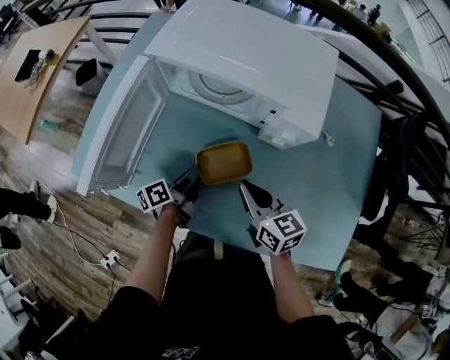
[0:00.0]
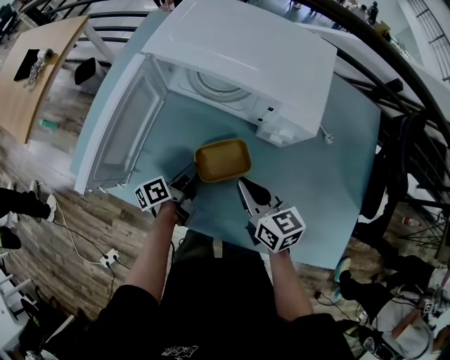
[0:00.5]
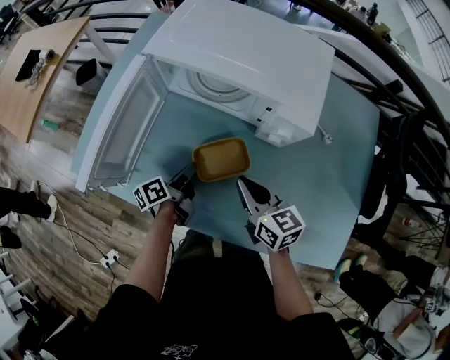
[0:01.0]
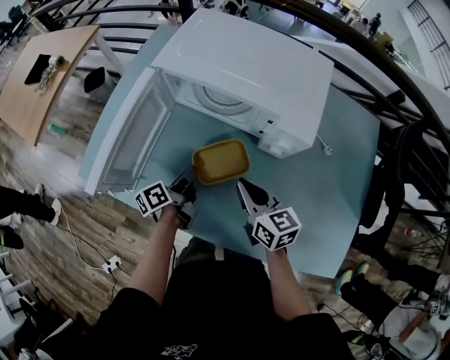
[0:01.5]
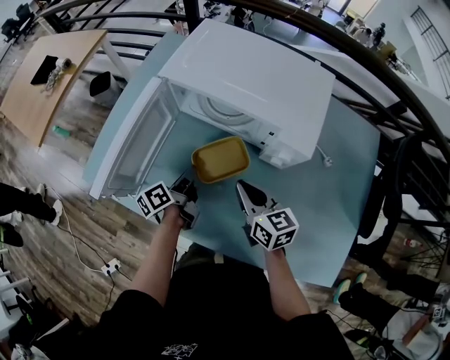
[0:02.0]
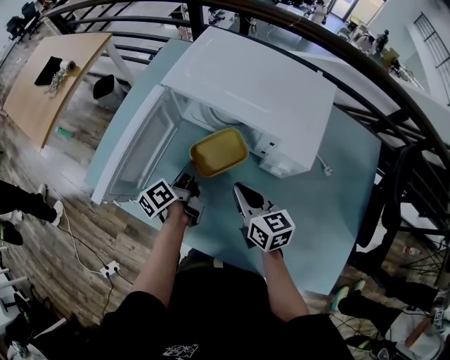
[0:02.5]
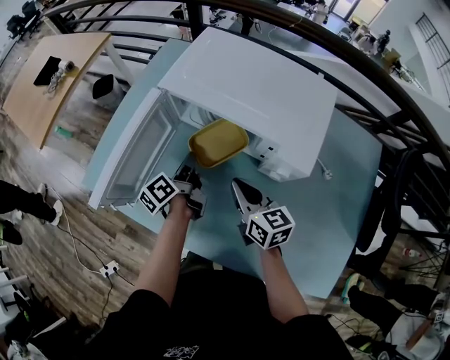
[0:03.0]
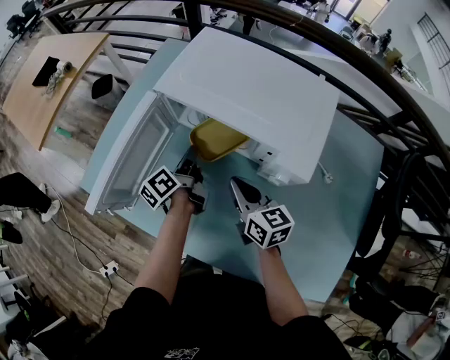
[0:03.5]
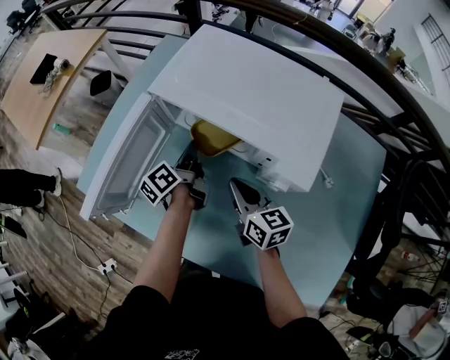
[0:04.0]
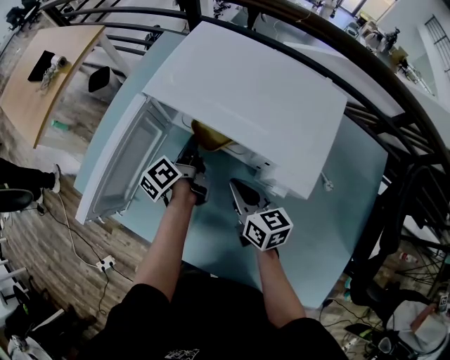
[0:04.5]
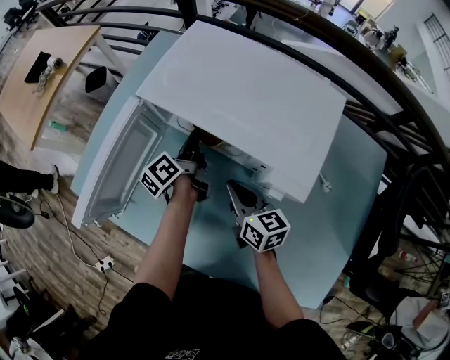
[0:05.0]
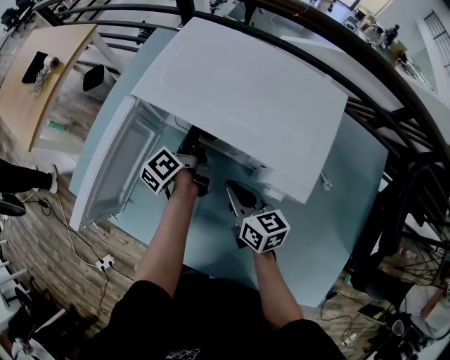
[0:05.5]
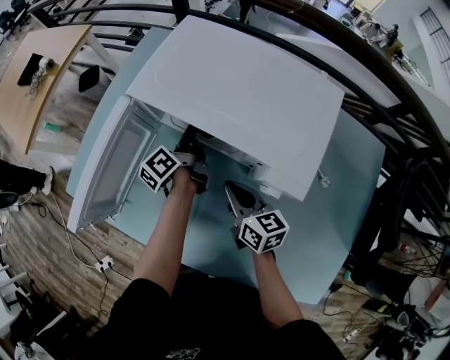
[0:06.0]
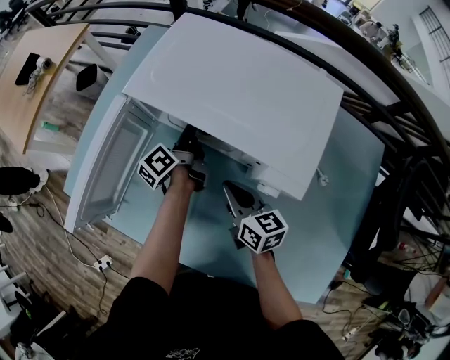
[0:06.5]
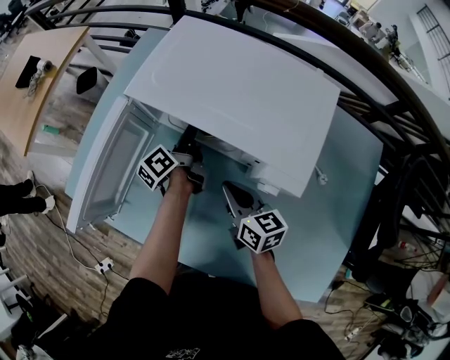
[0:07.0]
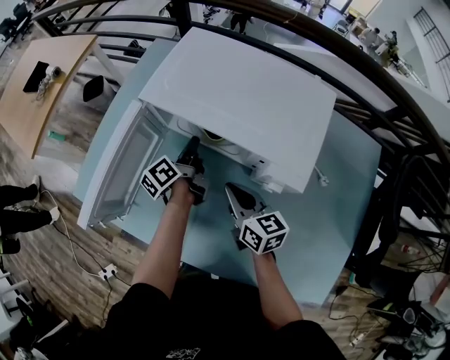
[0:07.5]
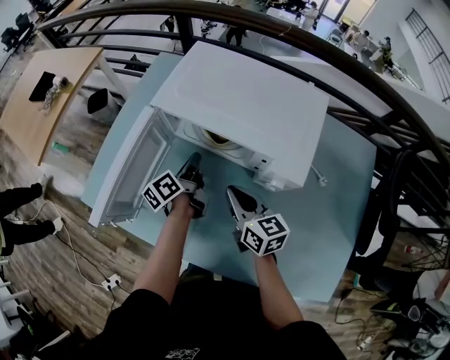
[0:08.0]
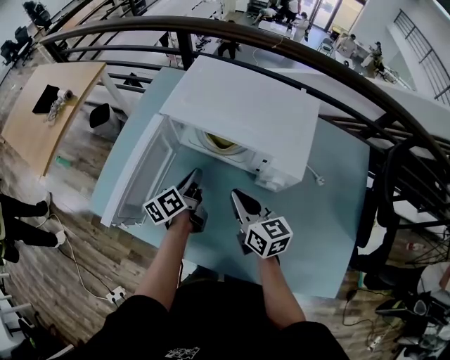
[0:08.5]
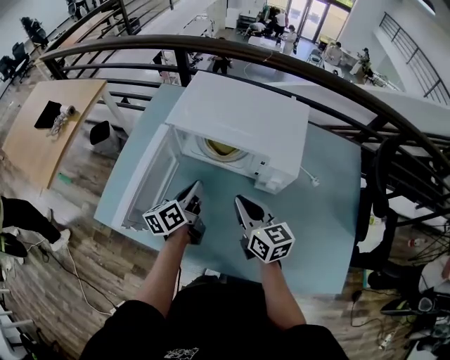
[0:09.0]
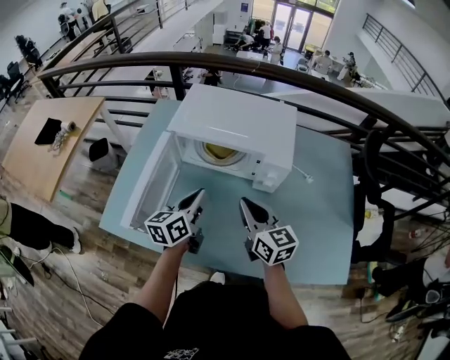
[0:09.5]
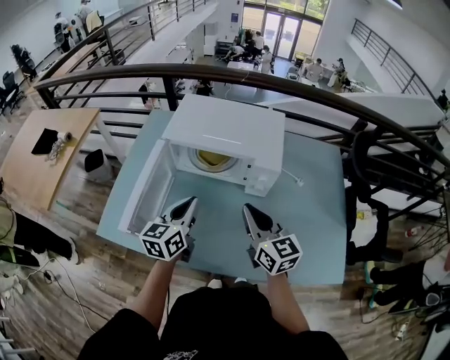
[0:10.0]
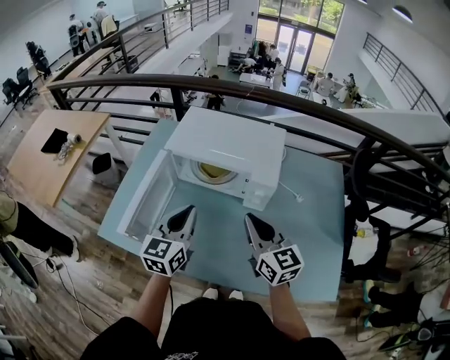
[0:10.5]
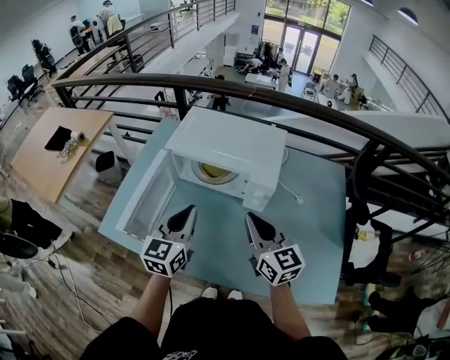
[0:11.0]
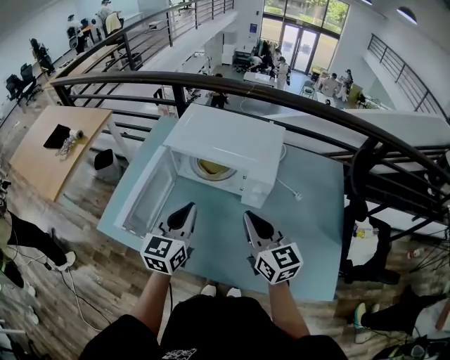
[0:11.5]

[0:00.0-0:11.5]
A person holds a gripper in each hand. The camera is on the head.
0:00.0 to 0:02.0: The left gripper is displaced upward by approximately 5 cm.
0:02.0 to 0:04.0: The left gripper goes about 15 cm forward. Meanwhile the right gripper is displaced forward by some 10 cm.
0:04.0 to 0:06.0: The left gripper heads forward, covering some 5 cm.
0:06.0 to 0:07.5: The grippers stay close to where they were, moving slightly.
0:07.5 to 0:09.5: The right gripper shifts roughly 15 cm upward and backward, and rotates approximately 20 degrees. Meanwhile the left gripper goes some 25 cm backward and upward, and twists some 40 degrees clockwise, seen from behind.
0:09.5 to 0:11.5: The right gripper heads upward and to the right, covering some 10 cm. Meanwhile the left gripper travels upward and backward by about 10 cm, and rotates some 30 degrees.

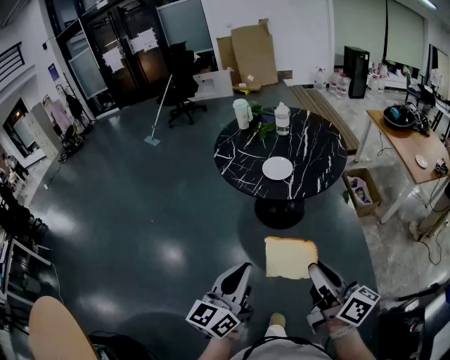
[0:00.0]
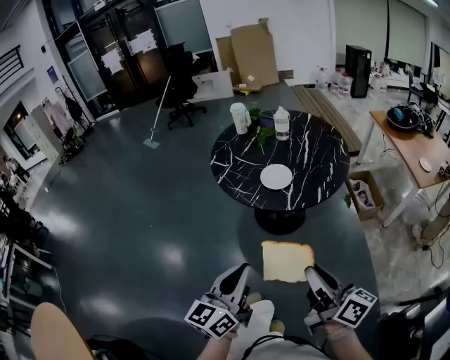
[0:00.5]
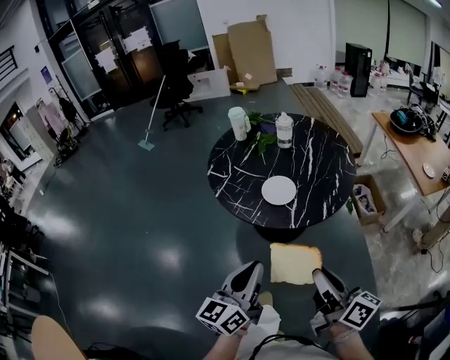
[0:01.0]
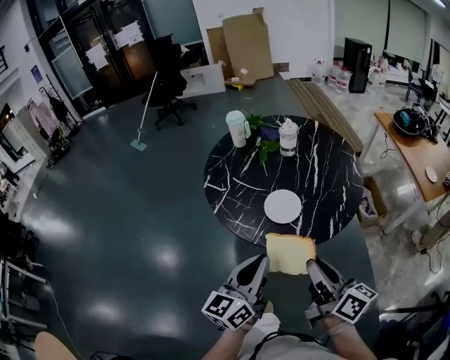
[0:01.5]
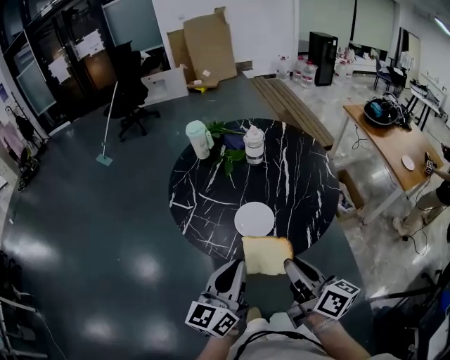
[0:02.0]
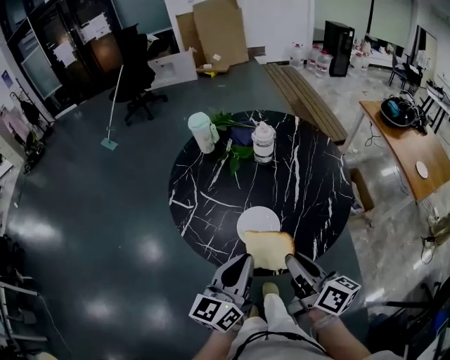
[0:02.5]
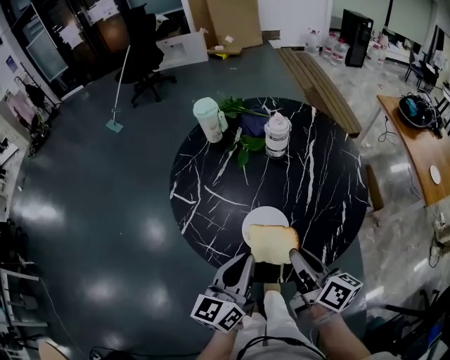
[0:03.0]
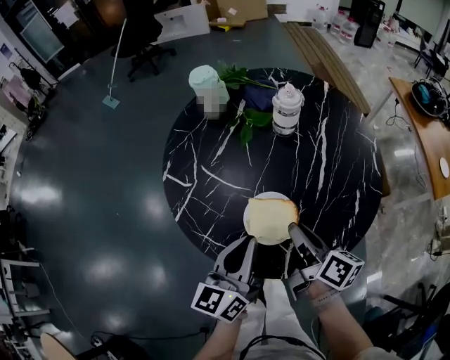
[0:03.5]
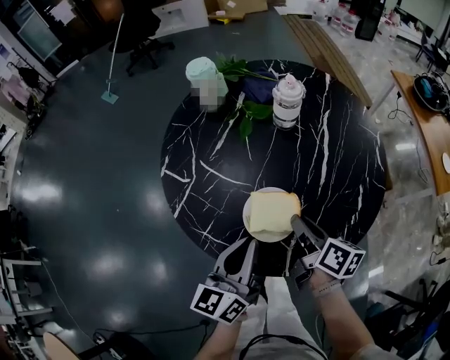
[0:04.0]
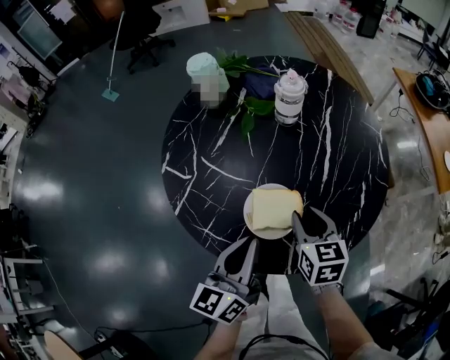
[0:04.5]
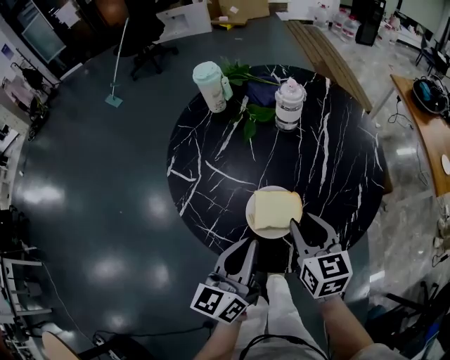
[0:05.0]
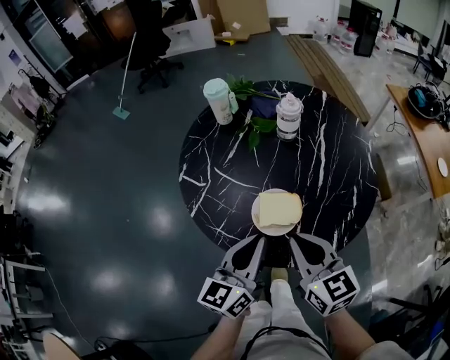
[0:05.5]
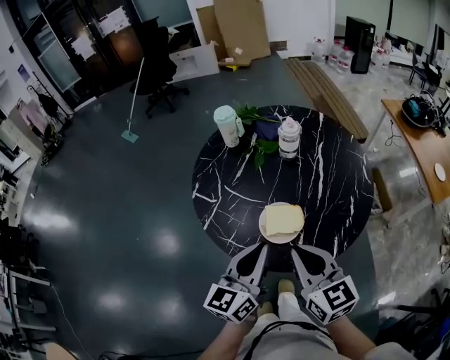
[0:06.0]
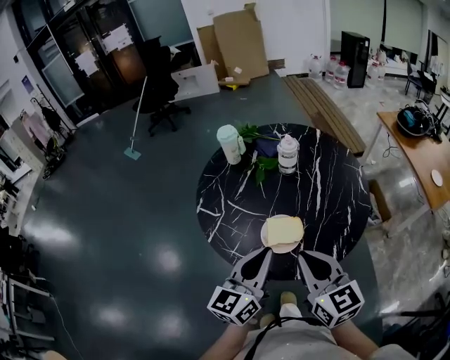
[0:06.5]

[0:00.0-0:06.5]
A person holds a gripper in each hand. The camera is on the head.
0:00.0 to 0:02.0: The grippers both shift forward by roughly 35 cm.
0:02.0 to 0:04.5: The right gripper moves forward and downward, about 25 cm, and angles its fingers downward, by some 30 degrees, while the left gripper goes some 15 cm forward and downward.
0:04.5 to 0:06.5: The left gripper shifts approximately 15 cm upward, while the right gripper moves upward and backward, roughly 25 cm, turns by about 30 degrees, and closes its fingers.

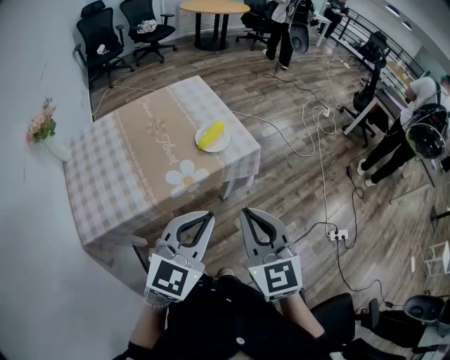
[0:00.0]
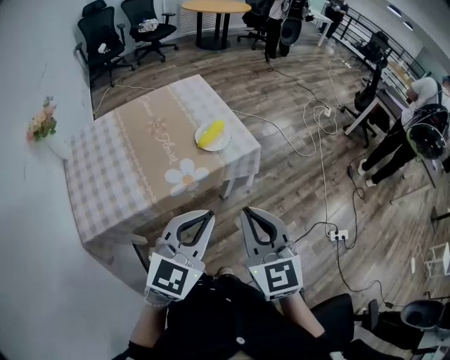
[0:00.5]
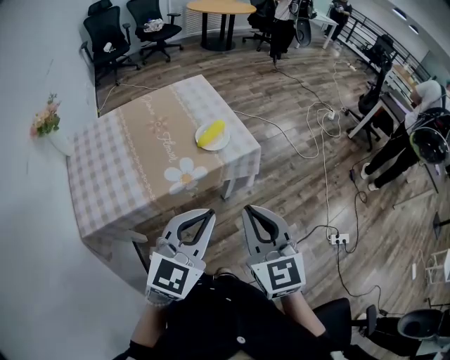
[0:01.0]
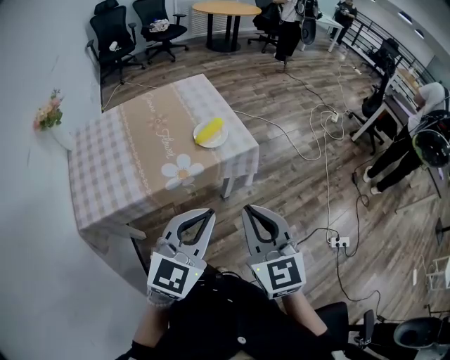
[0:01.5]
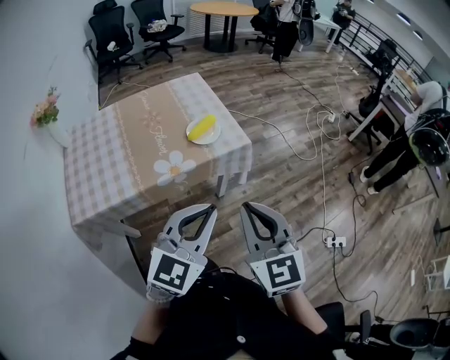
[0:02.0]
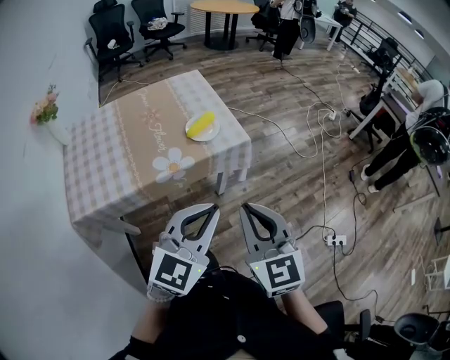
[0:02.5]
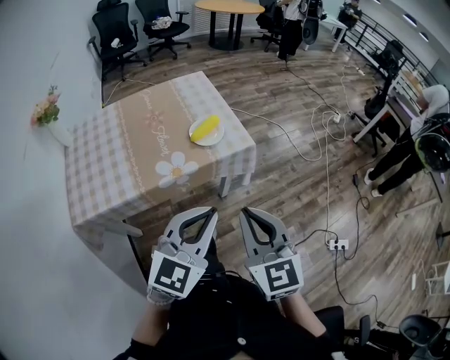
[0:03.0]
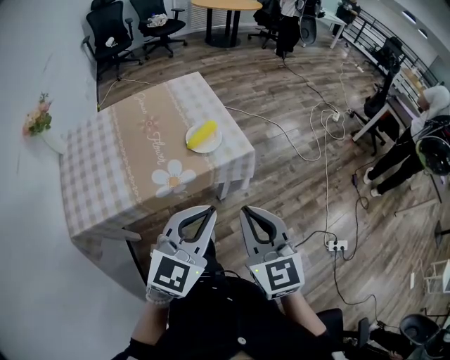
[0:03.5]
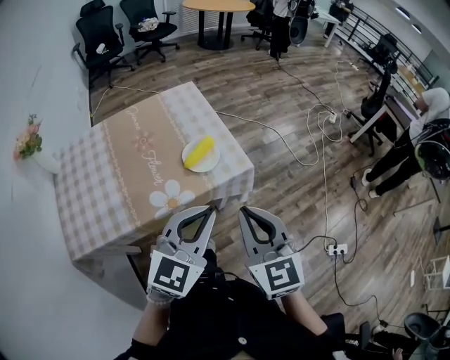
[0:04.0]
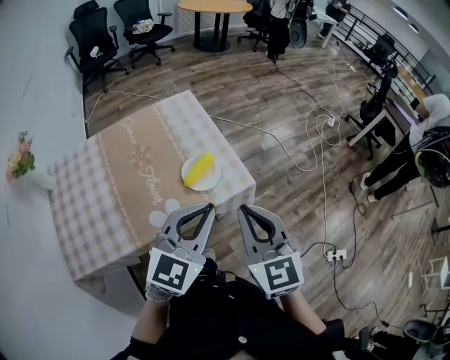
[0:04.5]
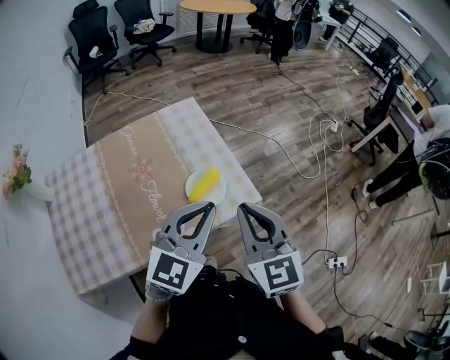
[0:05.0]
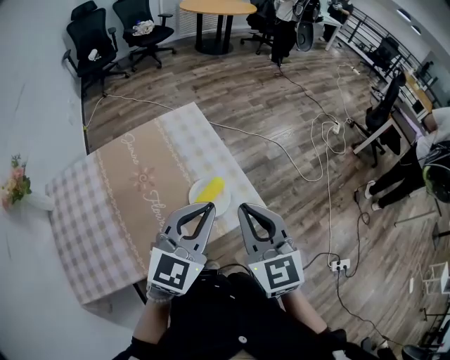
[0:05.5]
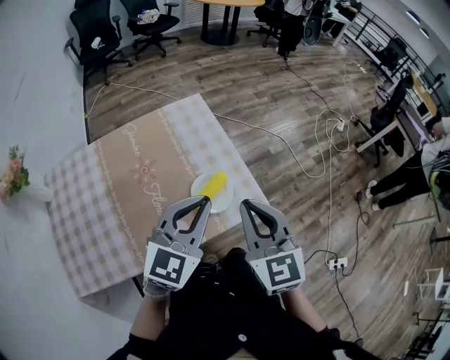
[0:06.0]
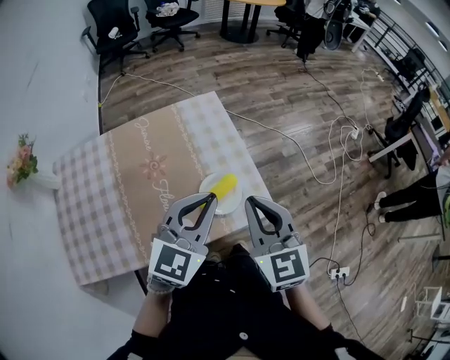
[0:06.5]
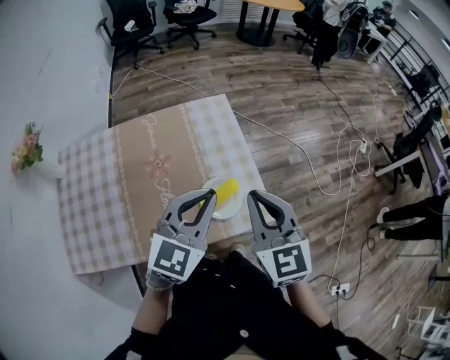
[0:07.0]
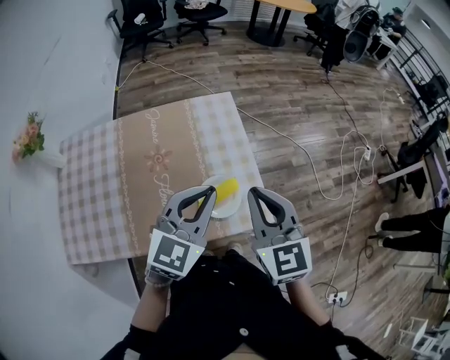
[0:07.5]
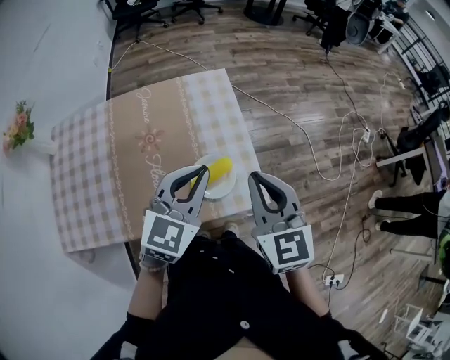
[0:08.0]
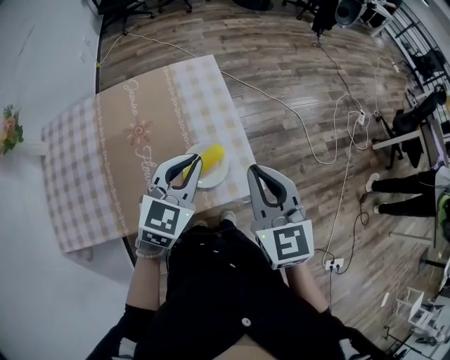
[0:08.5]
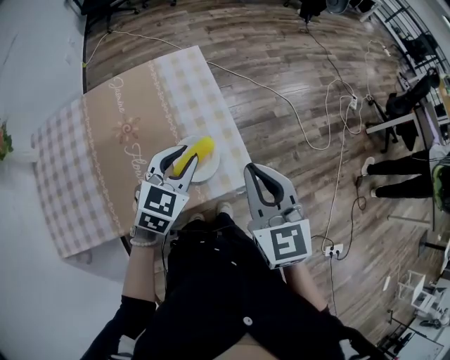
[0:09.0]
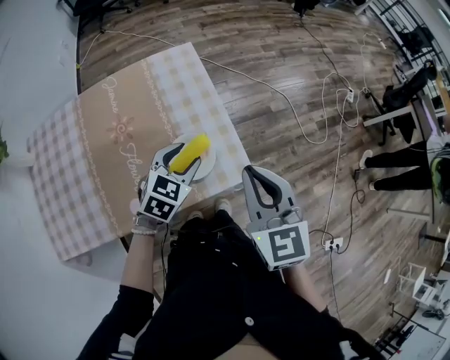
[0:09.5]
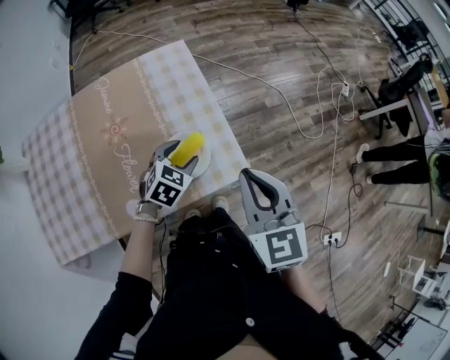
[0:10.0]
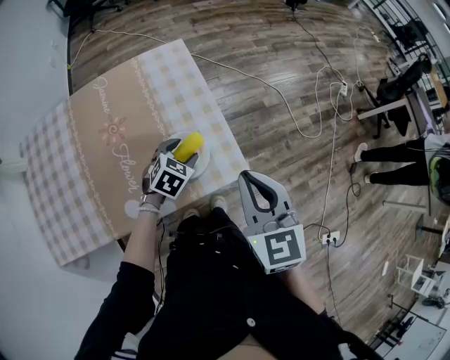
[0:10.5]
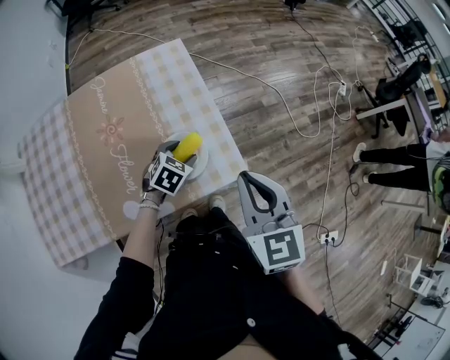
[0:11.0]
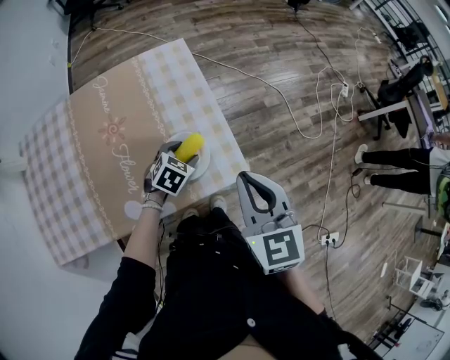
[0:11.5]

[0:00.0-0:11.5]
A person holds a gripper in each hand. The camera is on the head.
0:00.0 to 0:02.0: The two grippers go approximately 10 cm to the right.
0:02.0 to 0:04.0: The two grippers go roughly 15 cm forward.
0:04.0 to 0:06.0: Both grippers move forward, approximately 20 cm.
0:06.0 to 0:07.5: Both grippers move forward, roughly 5 cm.
0:07.5 to 0:09.5: The left gripper goes some 15 cm downward, swivels roughly 30 degrees, and opens up, while the right gripper moves to the right, roughly 5 cm.
0:09.5 to 0:11.5: The left gripper moves downward, approximately 10 cm.
